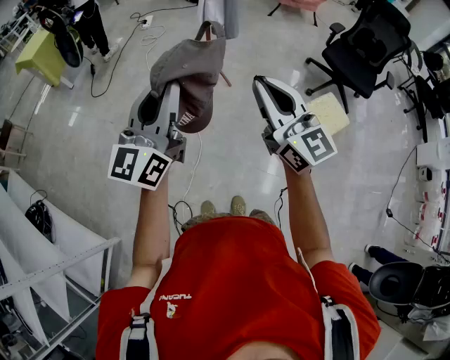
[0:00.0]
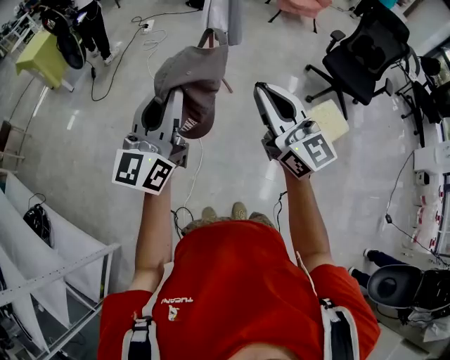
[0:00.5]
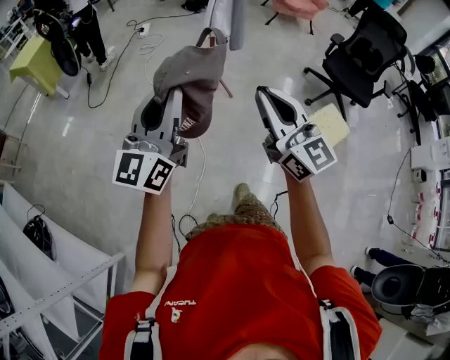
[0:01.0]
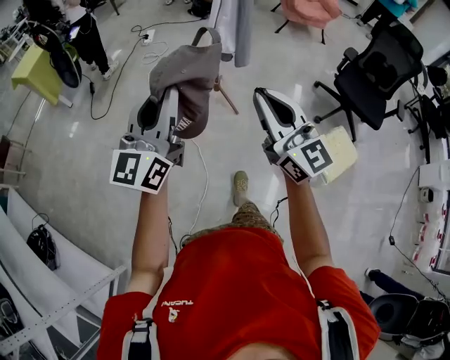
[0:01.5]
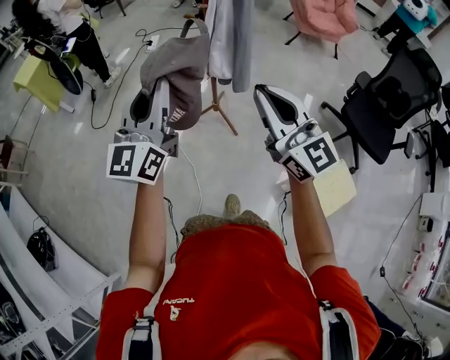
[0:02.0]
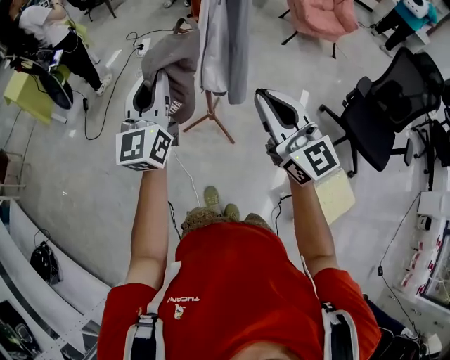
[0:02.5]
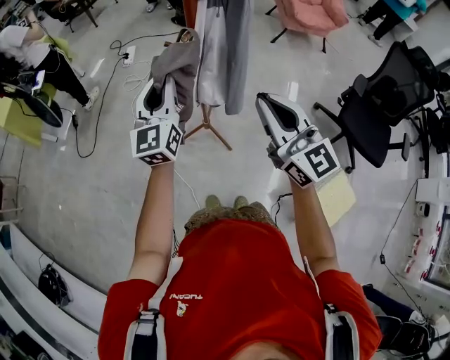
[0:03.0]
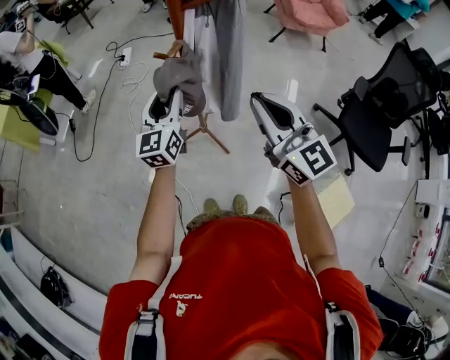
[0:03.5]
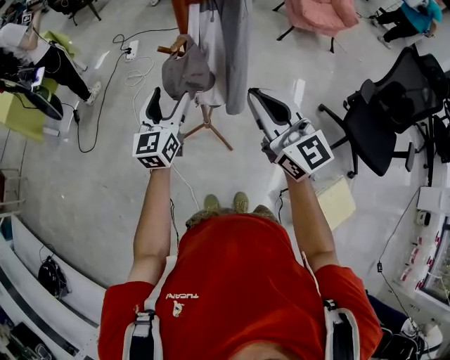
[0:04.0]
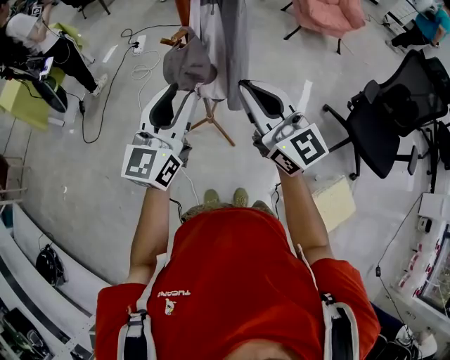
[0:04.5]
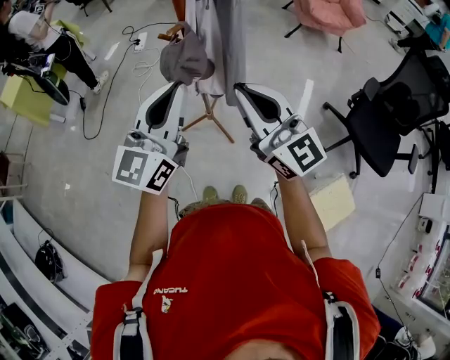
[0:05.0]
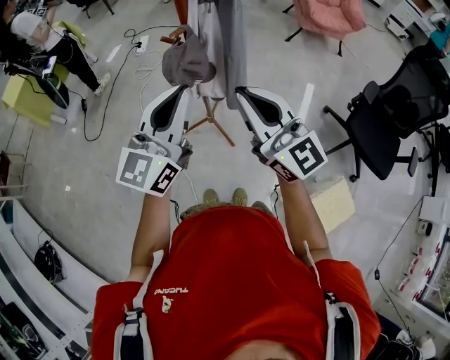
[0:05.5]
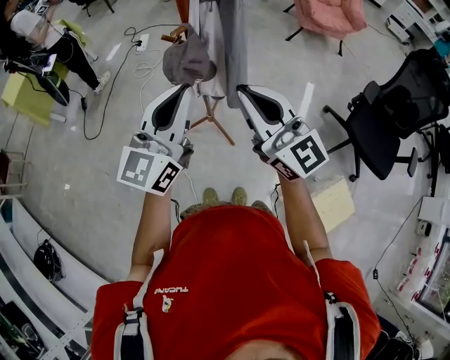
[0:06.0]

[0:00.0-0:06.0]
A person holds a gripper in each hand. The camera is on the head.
0:00.0 to 0:02.0: Both grippers travel together forward, approximately 40 cm.
0:02.0 to 0:04.0: The right gripper is displaced forward by about 25 cm. Meanwhile the left gripper shifts roughly 35 cm forward and downward, and opens.
0:04.0 to 0:06.0: The left gripper is displaced upward and backward by about 20 cm, and closes up; the right gripper is displaced backward by some 5 cm.

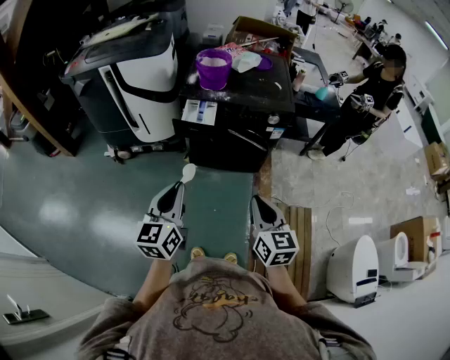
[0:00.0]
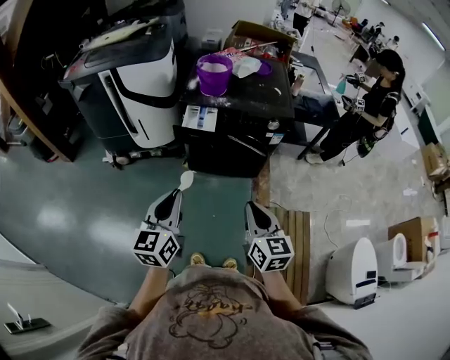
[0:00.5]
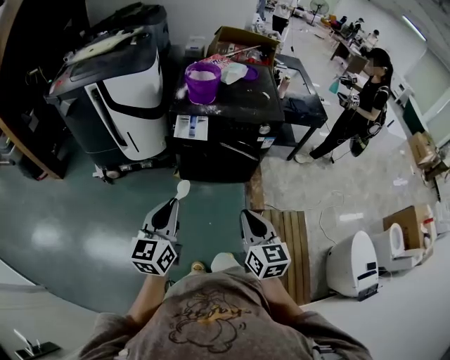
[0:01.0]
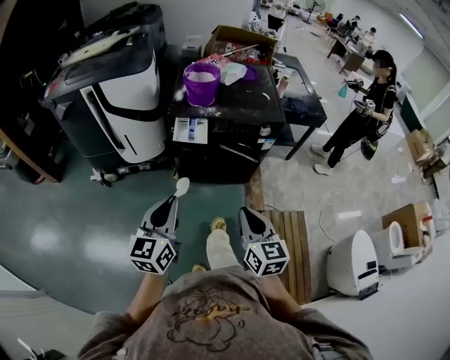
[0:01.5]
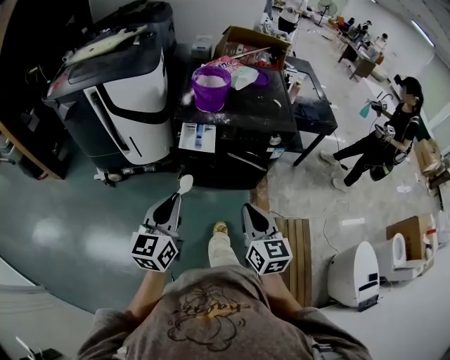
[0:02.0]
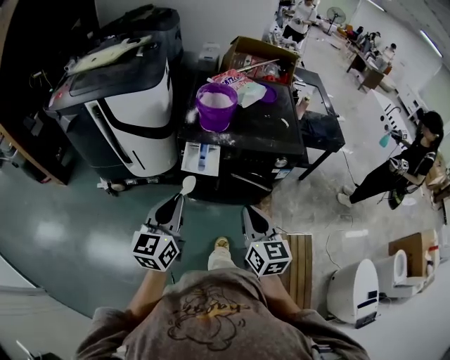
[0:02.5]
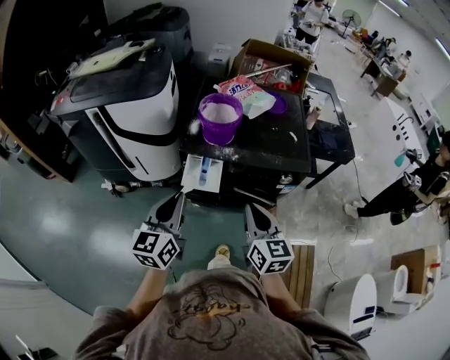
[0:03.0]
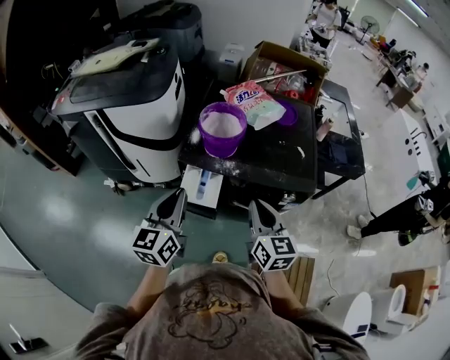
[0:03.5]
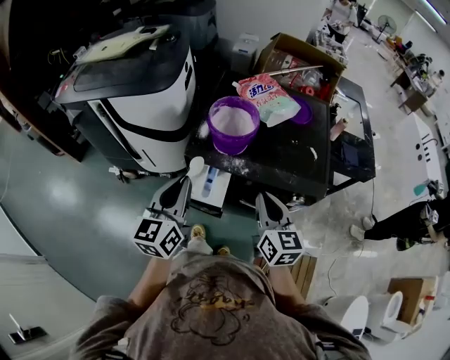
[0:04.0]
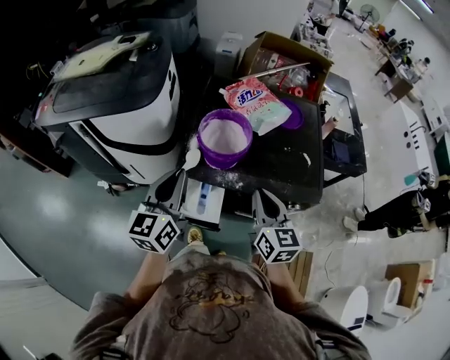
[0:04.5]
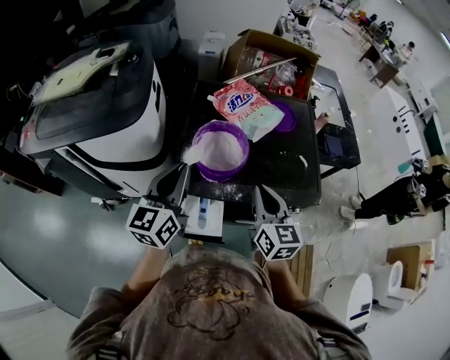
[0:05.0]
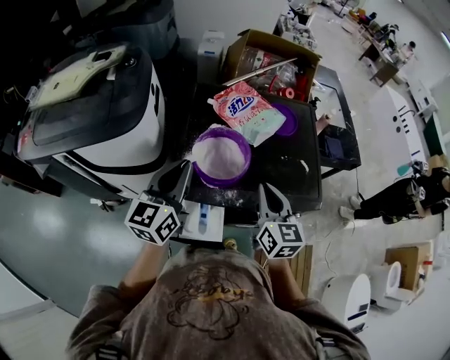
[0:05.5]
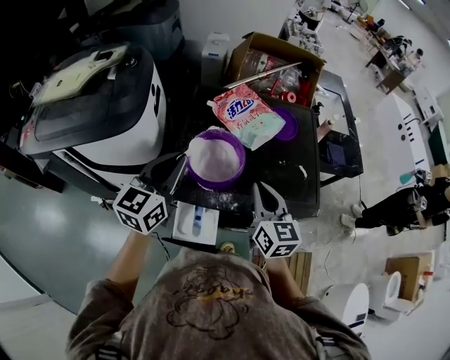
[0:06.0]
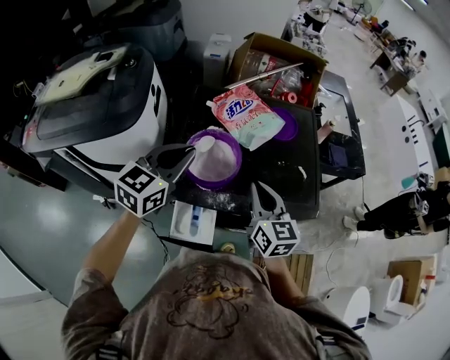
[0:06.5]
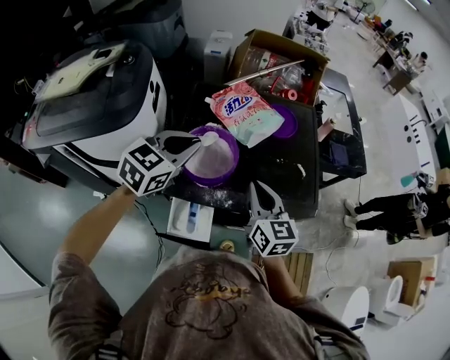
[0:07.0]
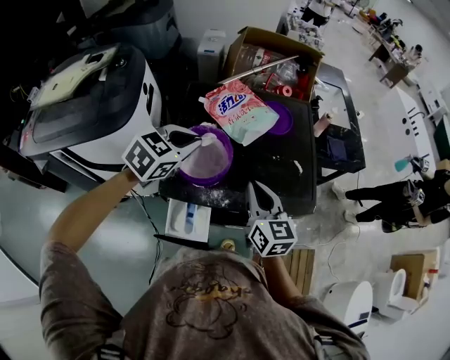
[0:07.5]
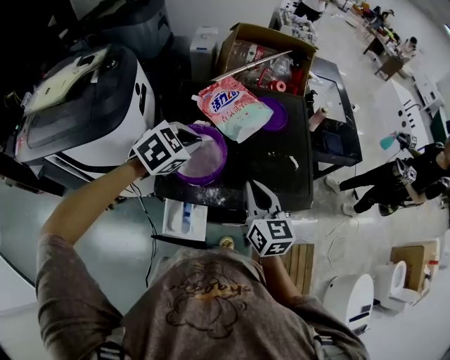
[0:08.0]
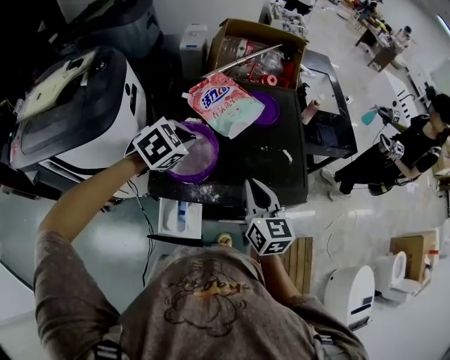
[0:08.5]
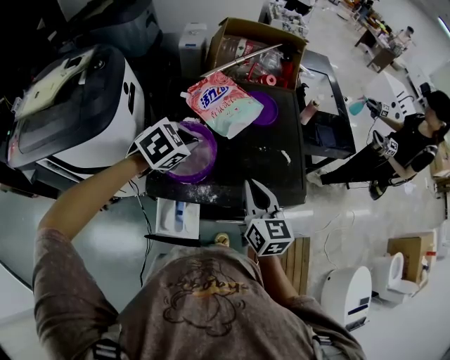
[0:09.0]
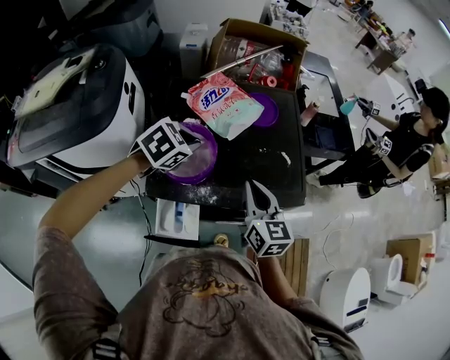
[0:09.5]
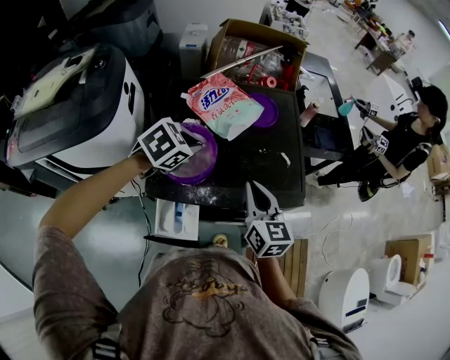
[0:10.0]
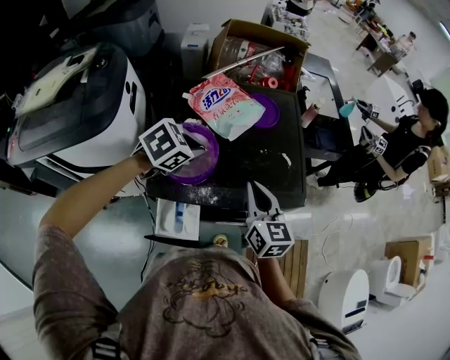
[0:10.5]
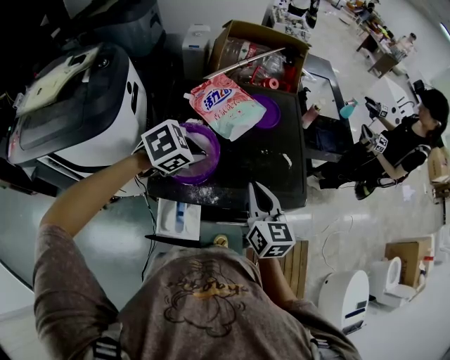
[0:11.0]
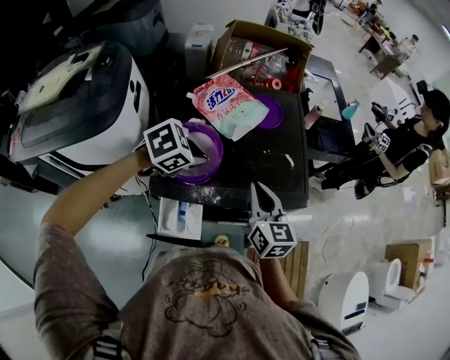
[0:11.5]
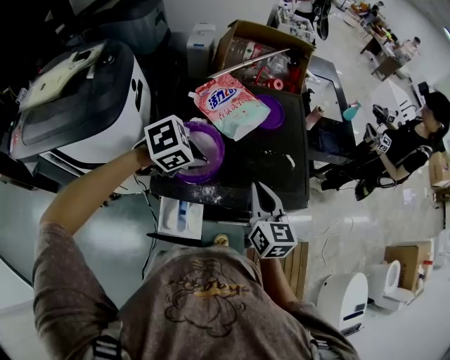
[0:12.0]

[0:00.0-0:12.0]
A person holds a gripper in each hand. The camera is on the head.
0:00.0 to 0:02.0: Both grippers move forward and to the left, approximately 10 cm.
0:02.0 to 0:04.0: Both grippers travel together forward, approximately 30 cm.
0:04.0 to 0:06.0: Both grippers move forward, roughly 20 cm. The left gripper rotates approximately 20 degrees.
0:06.0 to 0:08.0: The left gripper moves to the right, forward and downward, about 15 cm, and tilts its fingers roughly 40 degrees downward.
0:08.0 to 0:10.0: There are only small adjustments of the grippers.
0:10.0 to 0:12.0: The left gripper shifts by some 5 cm.

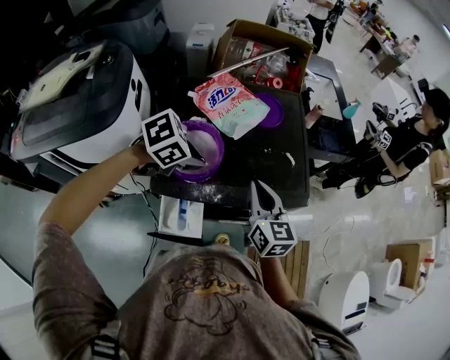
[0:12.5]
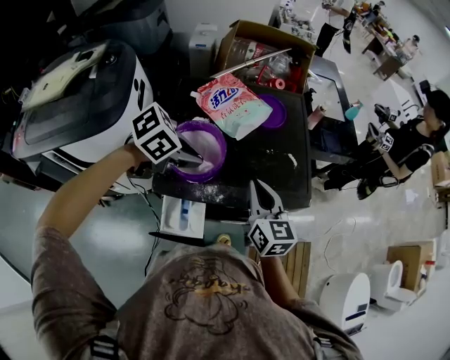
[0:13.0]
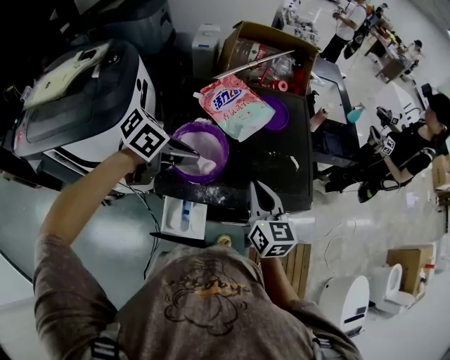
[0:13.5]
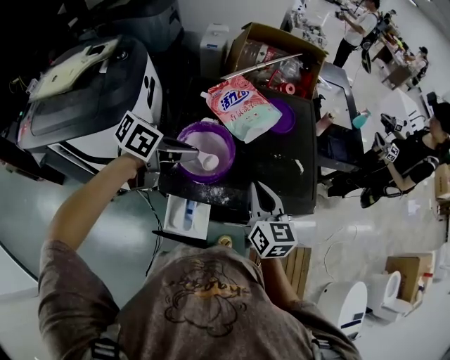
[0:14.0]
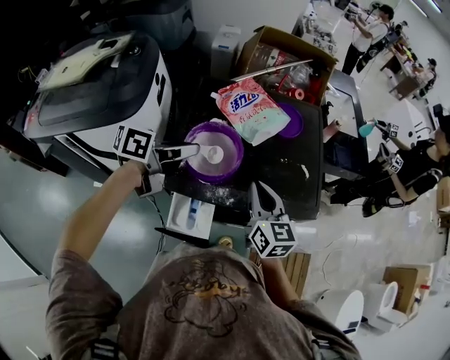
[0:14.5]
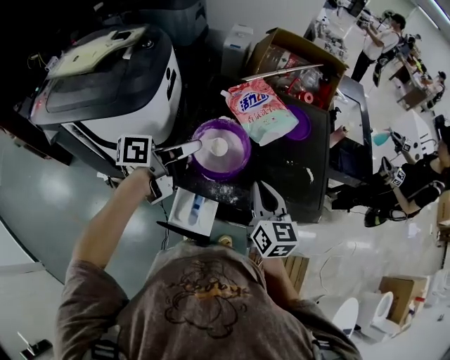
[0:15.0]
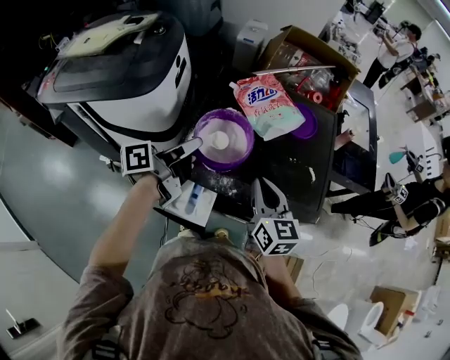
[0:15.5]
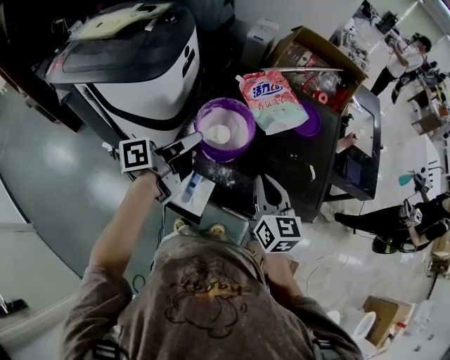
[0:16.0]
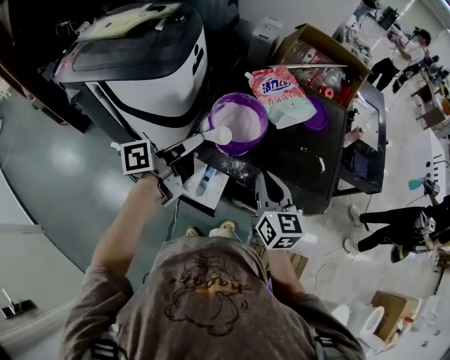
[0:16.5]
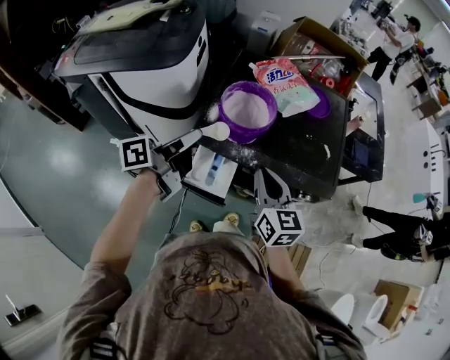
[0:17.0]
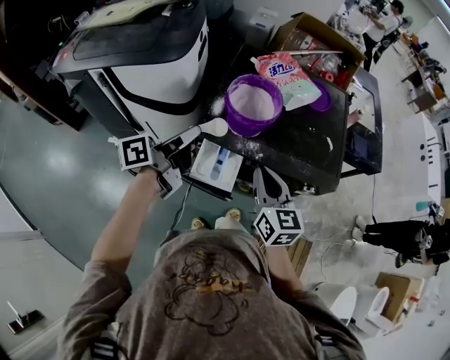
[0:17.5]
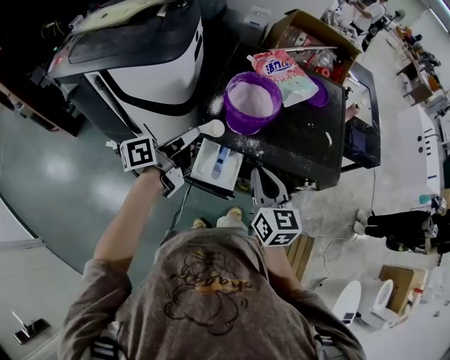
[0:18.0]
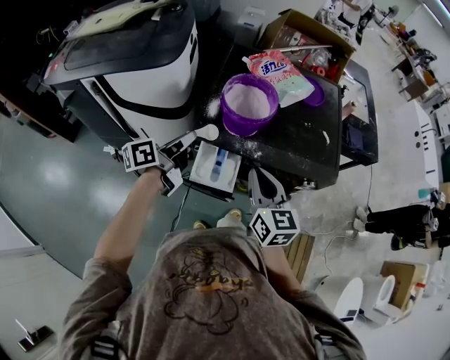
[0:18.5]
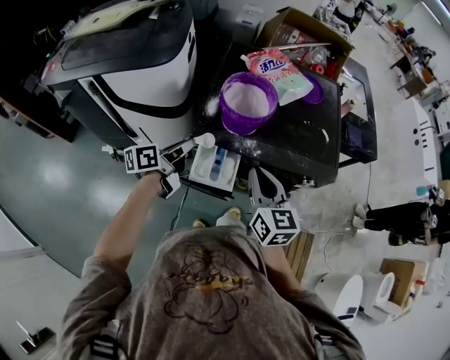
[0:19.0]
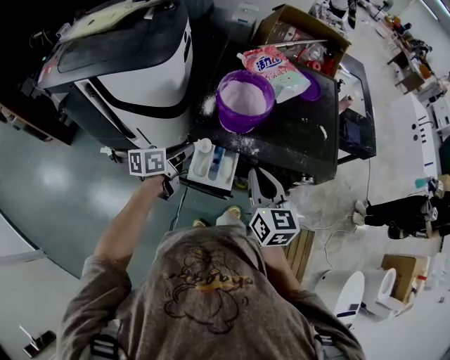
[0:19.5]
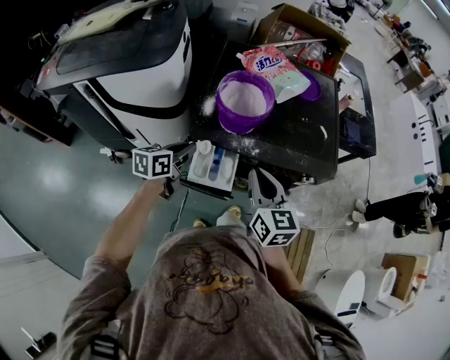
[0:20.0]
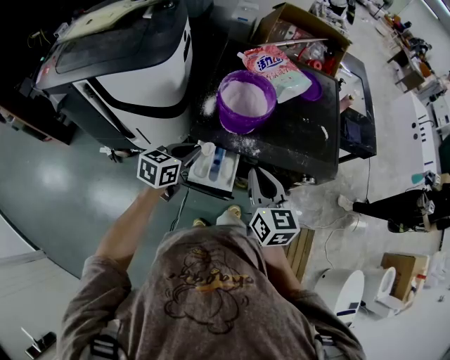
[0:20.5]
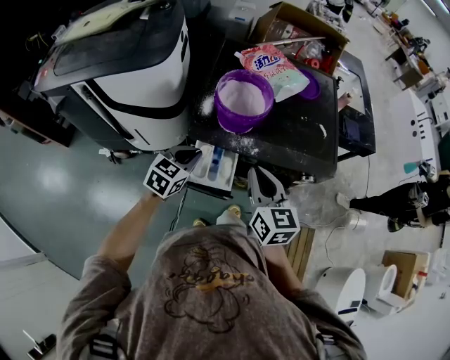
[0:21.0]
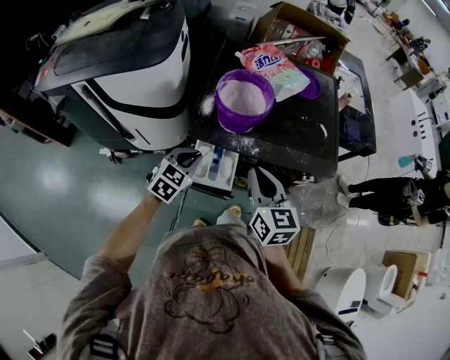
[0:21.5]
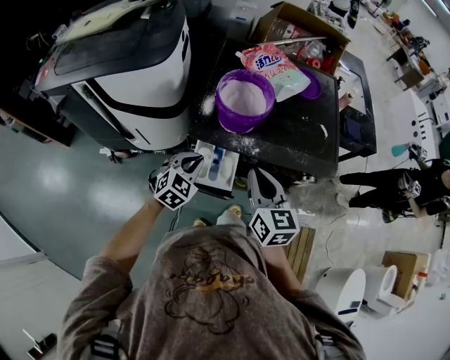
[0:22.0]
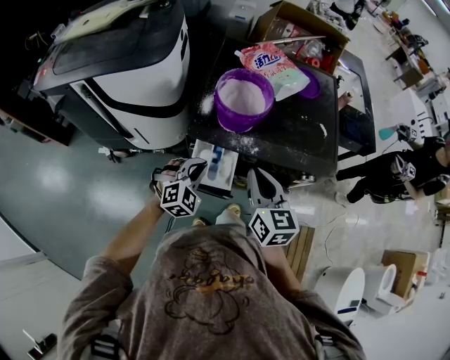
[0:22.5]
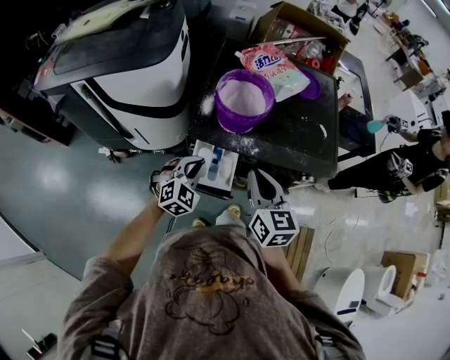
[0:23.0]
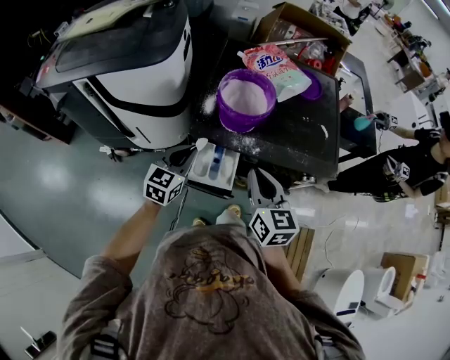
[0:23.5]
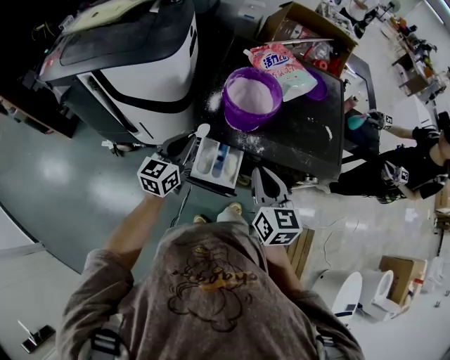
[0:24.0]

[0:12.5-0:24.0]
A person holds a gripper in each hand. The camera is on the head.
0:12.5 to 0:14.5: The left gripper goes approximately 10 cm to the left, and angles its fingers upward, by roughly 40 degrees.
0:14.5 to 0:16.5: The right gripper shifts roughly 5 cm backward, while the left gripper heads backward, covering approximately 10 cm, and changes its angle by some 40 degrees.
0:16.5 to 0:18.5: The left gripper travels downward and to the left by roughly 10 cm. Meanwhile the right gripper heads backward and to the left, covering some 10 cm.
0:18.5 to 0:20.0: The left gripper moves downward, some 5 cm, and rotates approximately 30 degrees.
0:20.0 to 0:22.0: The left gripper shifts by about 5 cm, and rotates around the line of its fingers by about 50 degrees, clockwise from behind.
0:22.0 to 0:24.0: The left gripper moves upward and to the left, some 10 cm, and rotates roughly 50 degrees.
